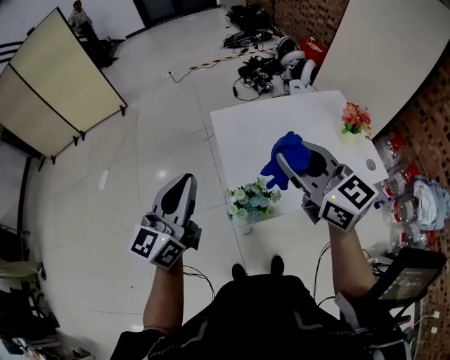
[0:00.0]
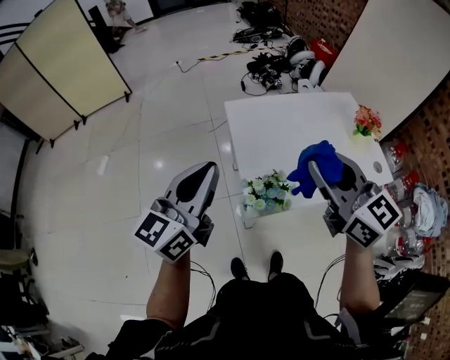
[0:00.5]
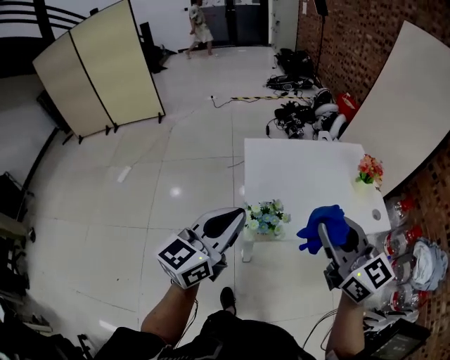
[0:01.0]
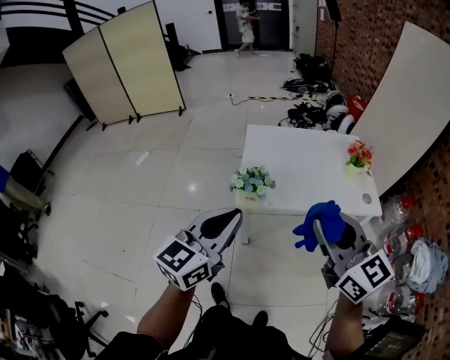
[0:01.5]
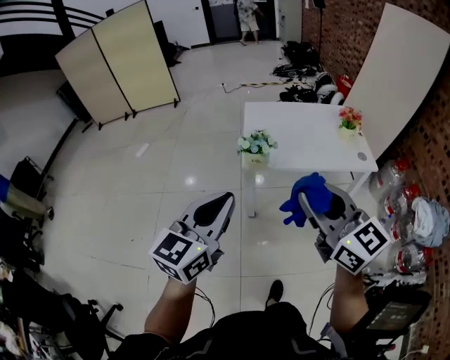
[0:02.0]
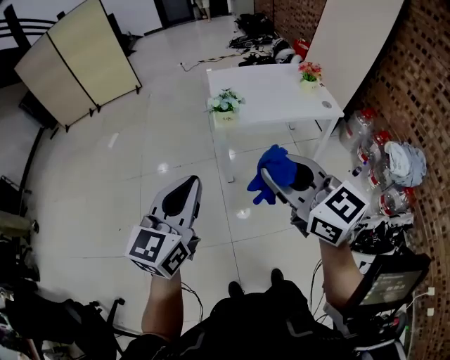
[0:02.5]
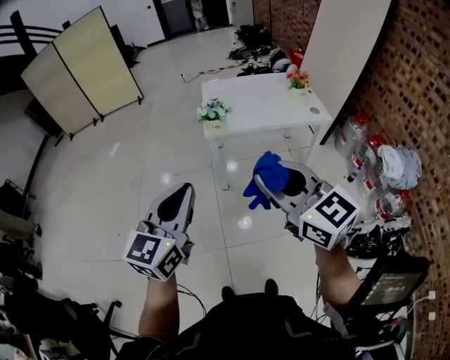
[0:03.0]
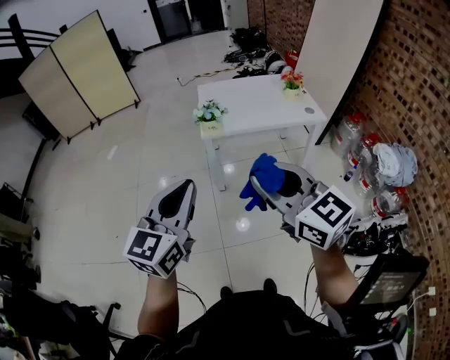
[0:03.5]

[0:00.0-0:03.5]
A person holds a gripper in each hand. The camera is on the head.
0:00.0 to 0:02.0: The two grippers travel together, backward, roughly 50 cm.
0:02.0 to 0:03.5: The two grippers go about 20 cm backward.

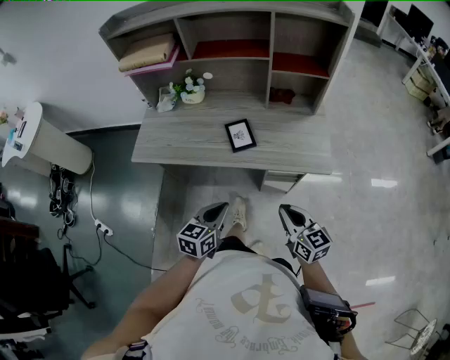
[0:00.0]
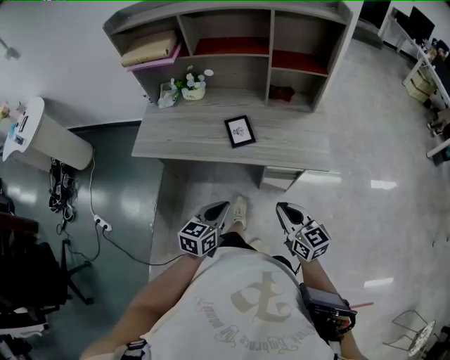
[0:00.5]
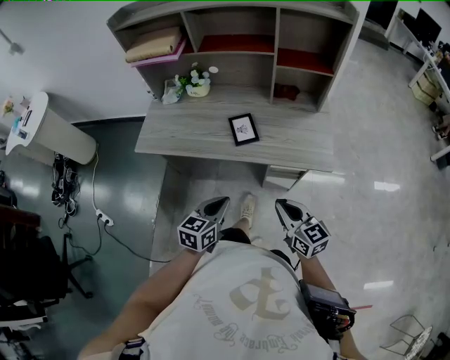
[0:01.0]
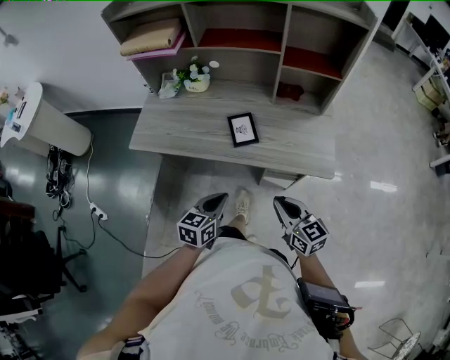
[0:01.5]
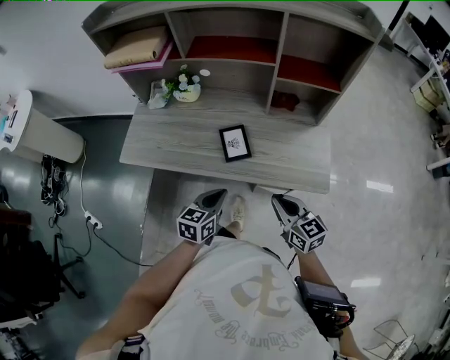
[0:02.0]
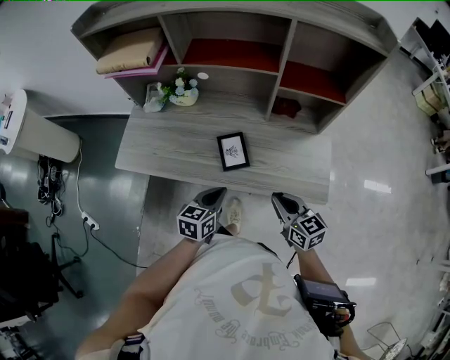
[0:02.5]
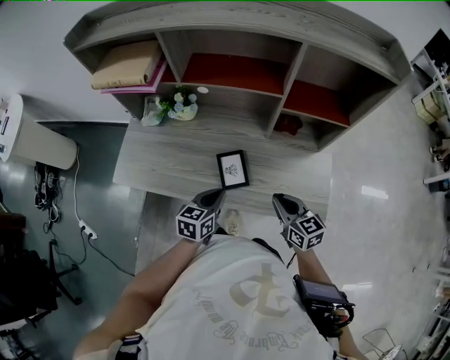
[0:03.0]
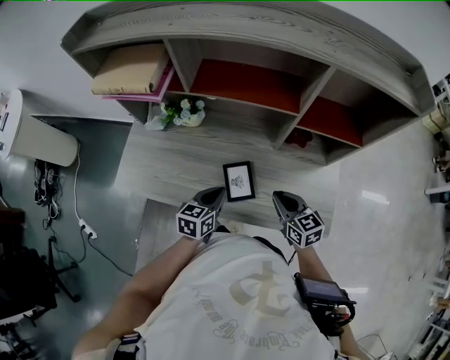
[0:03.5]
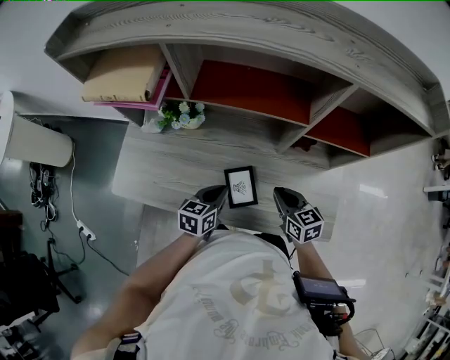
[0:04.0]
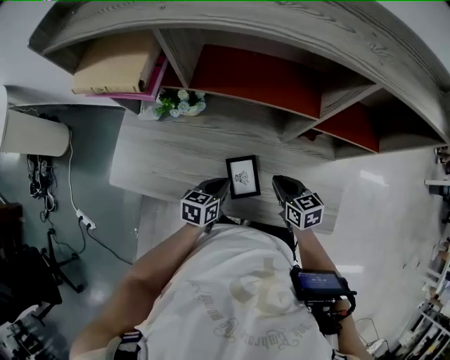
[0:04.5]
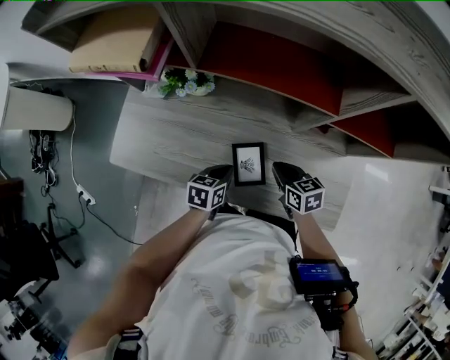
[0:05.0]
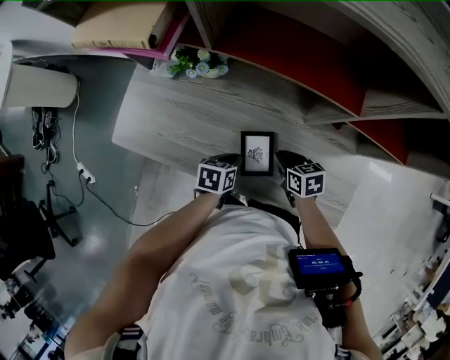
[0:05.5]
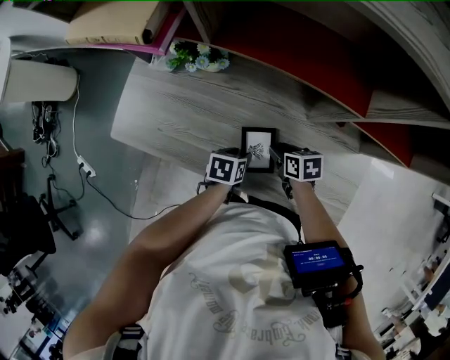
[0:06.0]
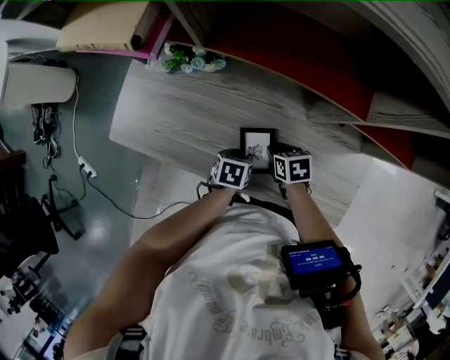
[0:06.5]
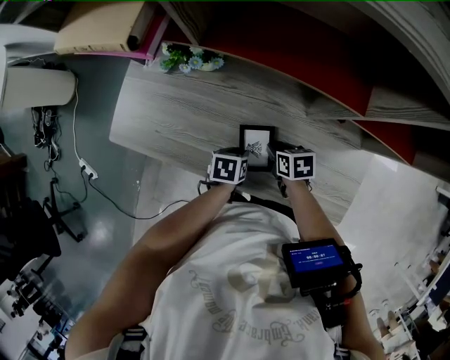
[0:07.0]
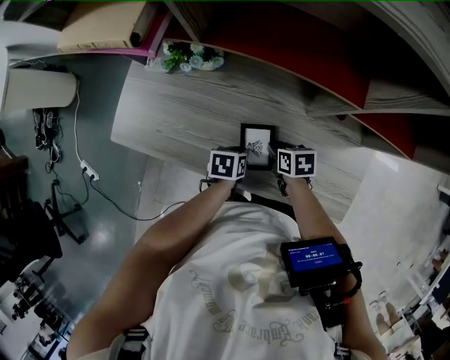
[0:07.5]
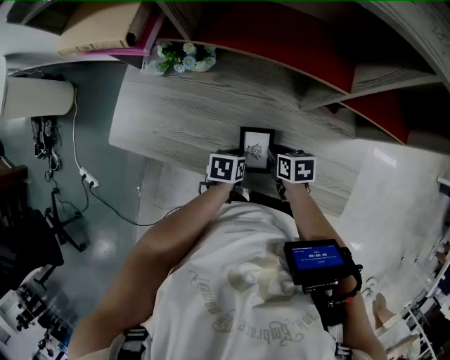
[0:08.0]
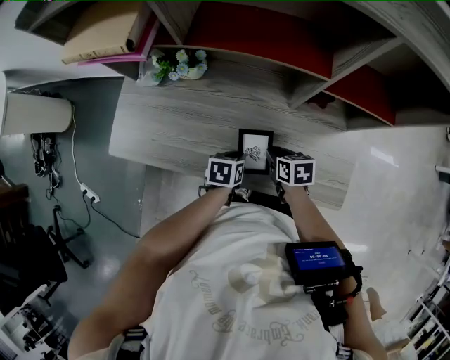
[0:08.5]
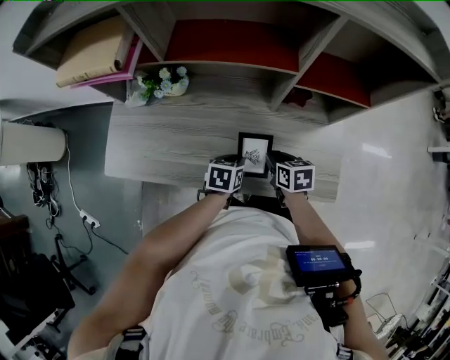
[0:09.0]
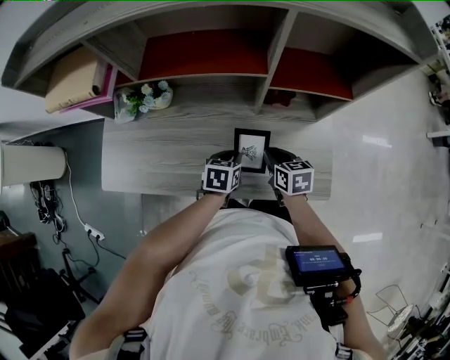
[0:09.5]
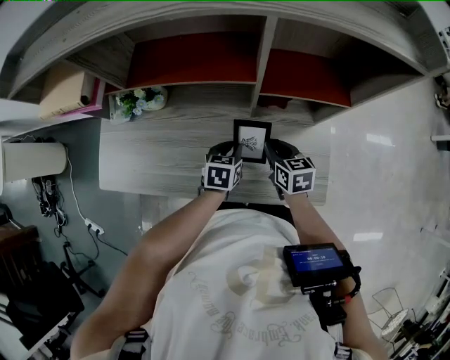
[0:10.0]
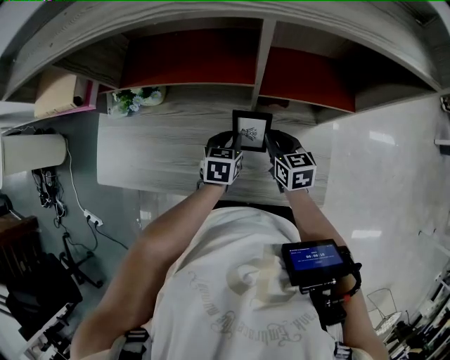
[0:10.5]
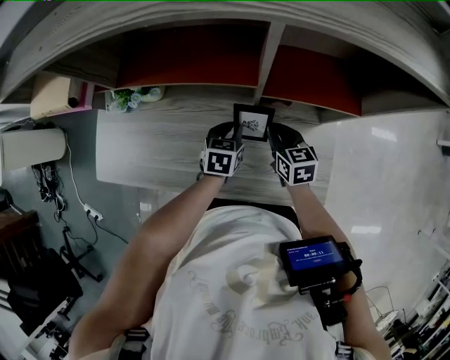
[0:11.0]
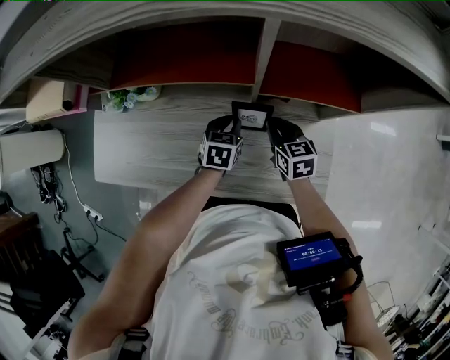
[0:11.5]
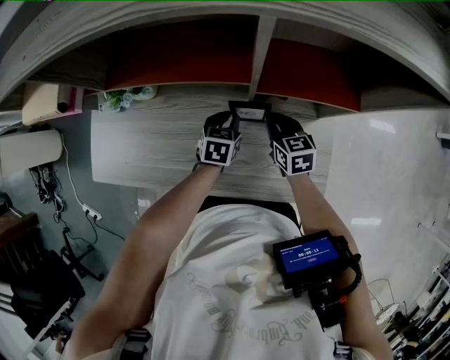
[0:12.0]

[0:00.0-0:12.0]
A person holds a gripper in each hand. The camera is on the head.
0:00.0 to 0:02.0: Both grippers travel together forward, about 15 cm.
0:02.0 to 0:04.0: The grippers both shift forward by approximately 25 cm.
0:04.0 to 0:06.0: The left gripper moves downward, some 15 cm, rotates about 30 degrees, and opens its fingers. Meanwhile the right gripper travels downward and to the left by approximately 15 cm, changes its angle by some 30 degrees, and opens its fingers.
0:06.0 to 0:08.0: The left gripper closes its fingers.
0:08.0 to 0:10.0: The left gripper shifts some 15 cm to the right, upward and forward, and swivels approximately 30 degrees. Meanwhile the right gripper moves to the right and upward, some 15 cm, and turns by about 30 degrees.
0:10.0 to 0:12.0: The grippers both shift forward by approximately 10 cm.

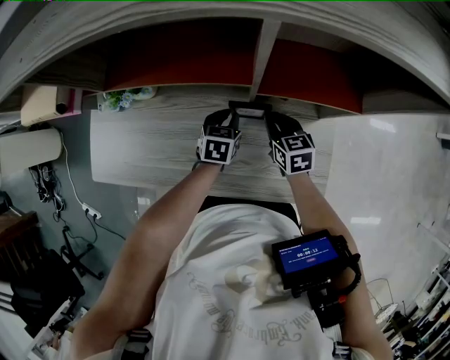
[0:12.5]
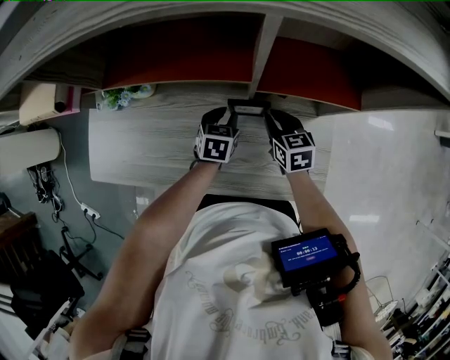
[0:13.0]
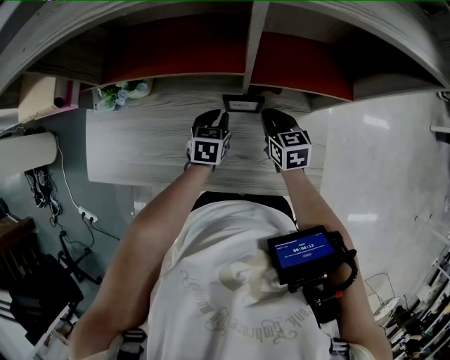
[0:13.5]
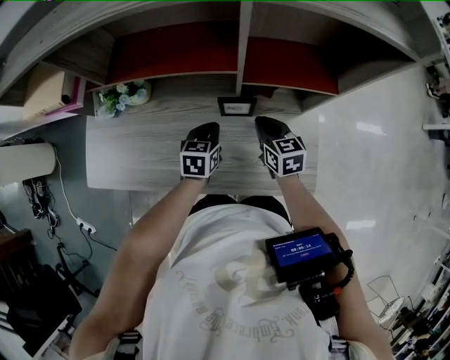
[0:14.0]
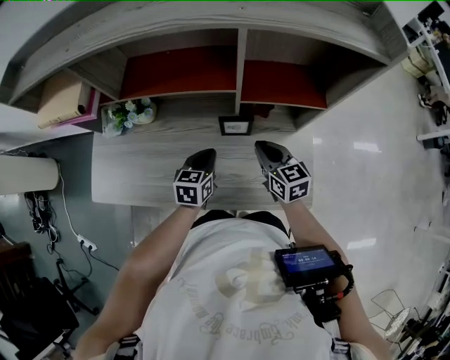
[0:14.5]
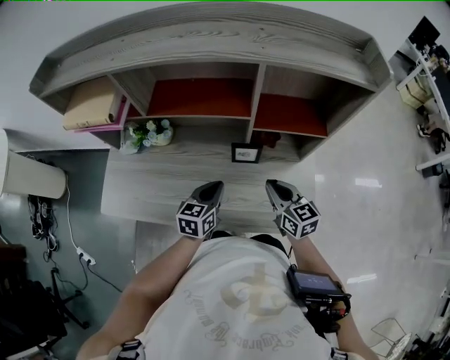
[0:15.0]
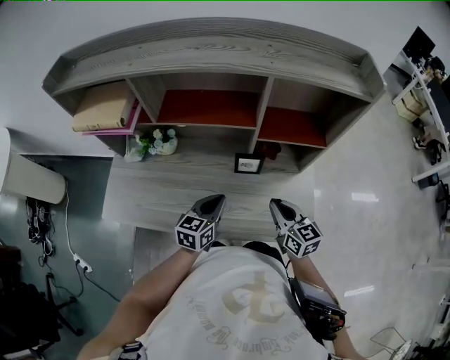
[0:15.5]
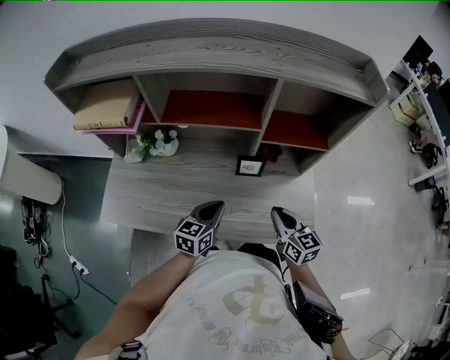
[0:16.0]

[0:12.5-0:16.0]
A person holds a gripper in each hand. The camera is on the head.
0:12.5 to 0:14.5: The left gripper moves backward and upward, roughly 15 cm; the right gripper moves upward and backward, about 10 cm.
0:14.5 to 0:16.0: The right gripper shifts roughly 10 cm backward. The left gripper moves backward and upward, some 10 cm.

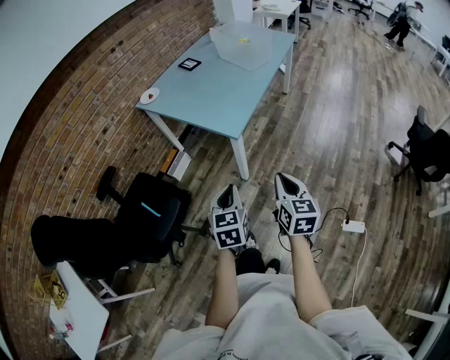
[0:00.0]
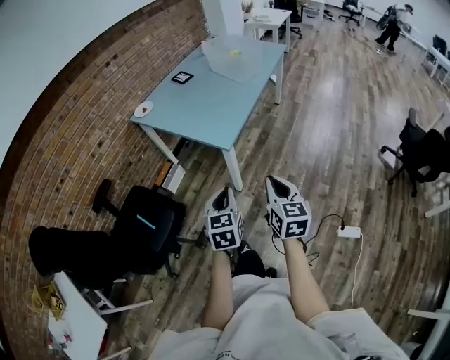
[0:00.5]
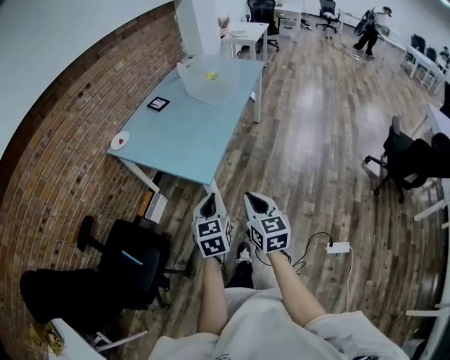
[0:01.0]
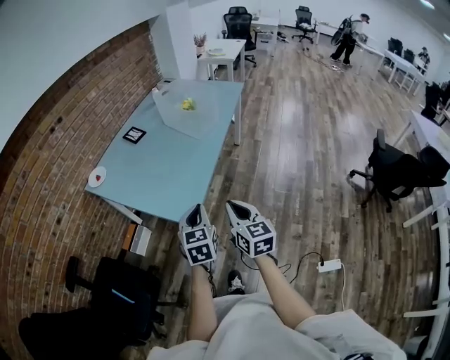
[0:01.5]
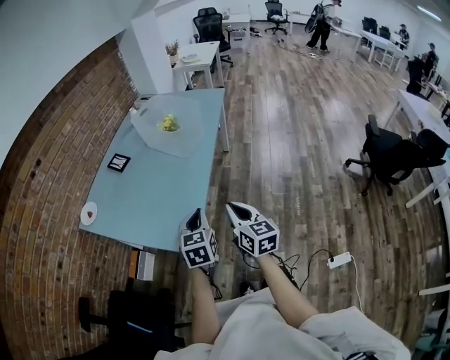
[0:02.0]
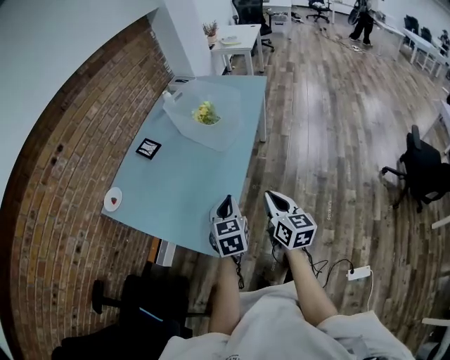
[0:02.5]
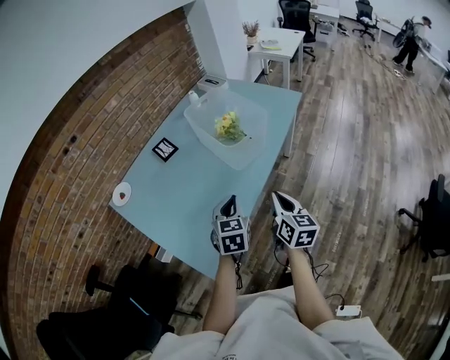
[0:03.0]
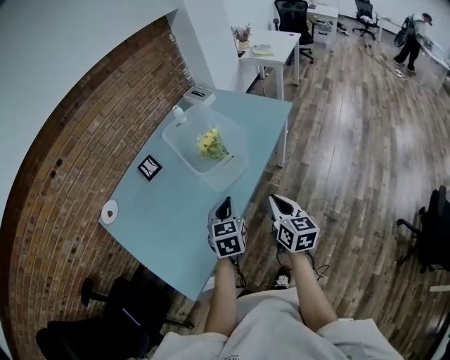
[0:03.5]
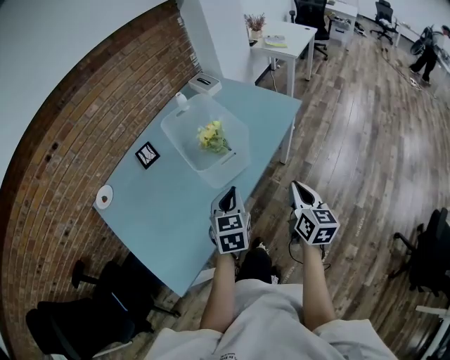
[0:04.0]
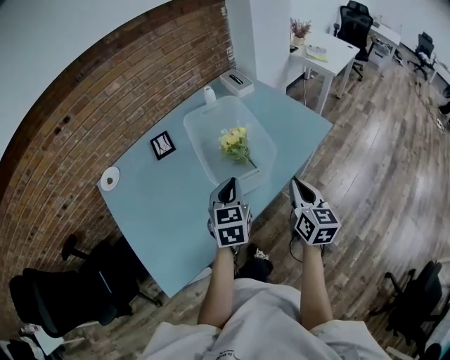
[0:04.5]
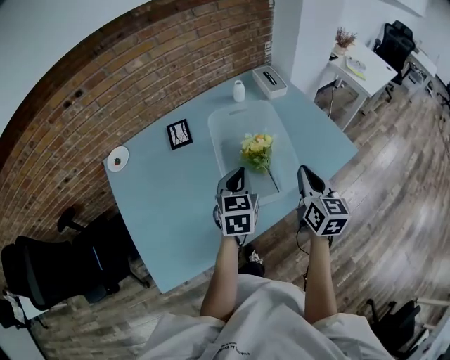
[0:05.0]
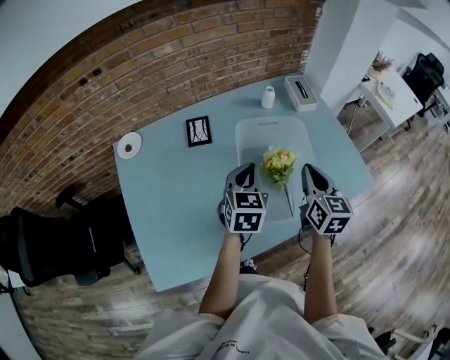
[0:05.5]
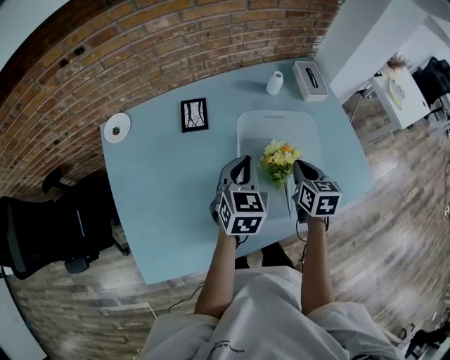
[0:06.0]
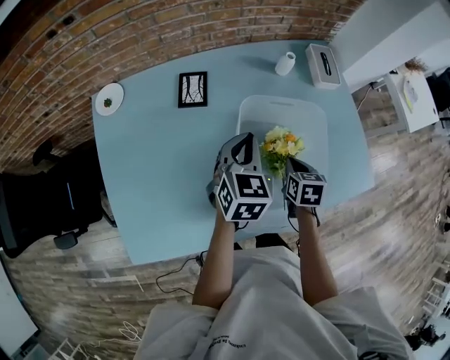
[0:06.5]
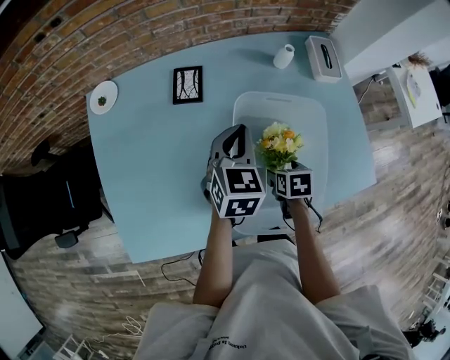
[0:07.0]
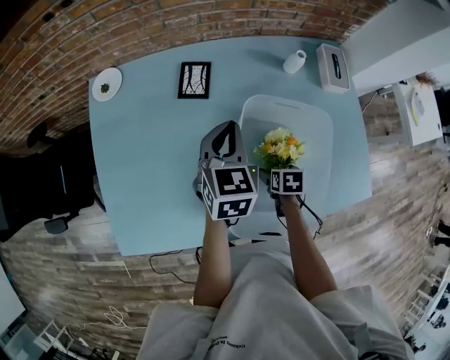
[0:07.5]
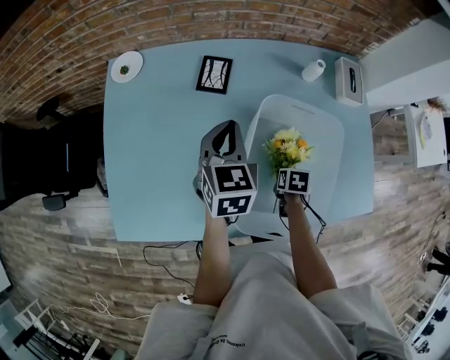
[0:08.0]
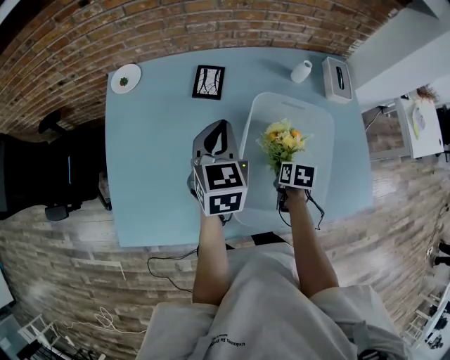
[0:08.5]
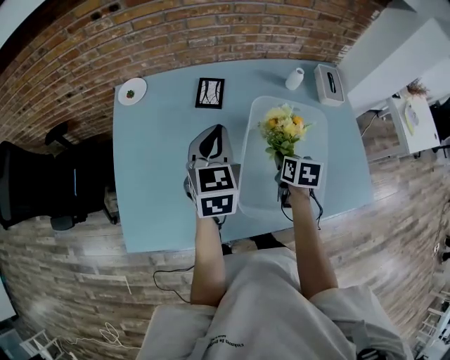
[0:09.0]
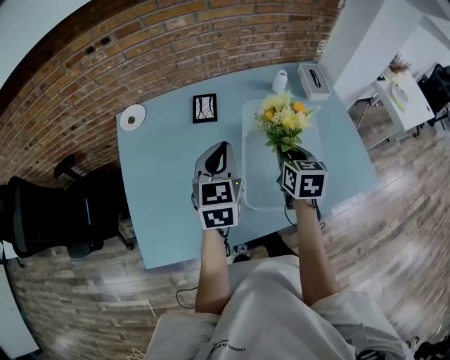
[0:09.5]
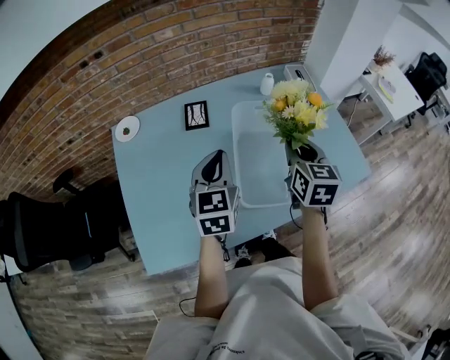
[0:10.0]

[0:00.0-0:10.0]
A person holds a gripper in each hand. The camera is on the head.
0:00.0 to 0:02.0: Both grippers travel together forward, approximately 35 cm.
0:02.0 to 0:04.0: Both grippers travel together forward and to the right, about 40 cm.
0:04.0 to 0:06.0: The right gripper shifts by approximately 50 cm, and swivels some 50 degrees. The left gripper shifts by approximately 35 cm, and changes its angle by some 20 degrees.
0:06.0 to 0:08.0: The right gripper heads downward, covering roughly 20 cm, tilts its fingers roughly 40 degrees downward, and opens, then closes again. The left gripper shifts by some 10 cm, and changes its angle by some 20 degrees.
0:08.0 to 0:10.0: The left gripper changes place by some 15 cm. Meanwhile the right gripper shifts roughly 35 cm upward, and points its fingers roughly 50 degrees further upward.
